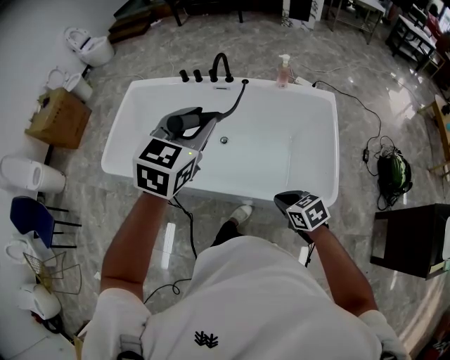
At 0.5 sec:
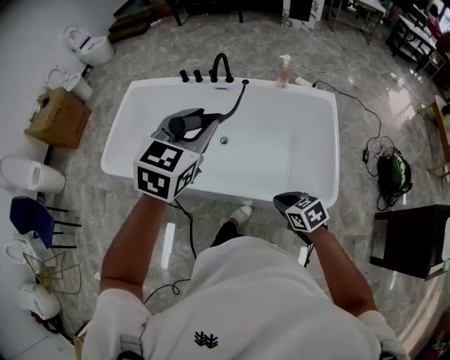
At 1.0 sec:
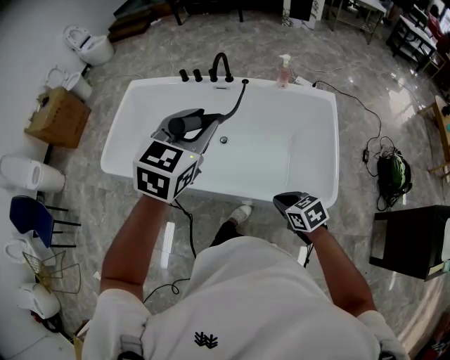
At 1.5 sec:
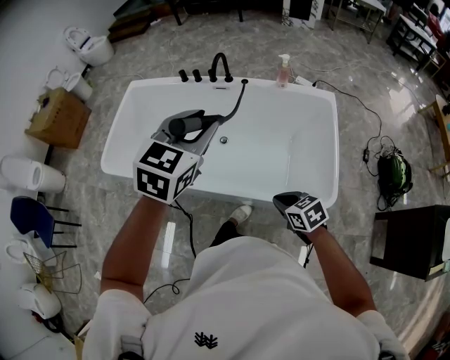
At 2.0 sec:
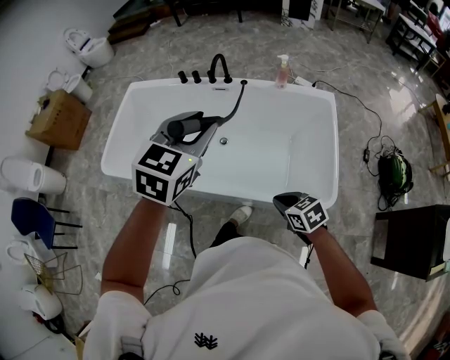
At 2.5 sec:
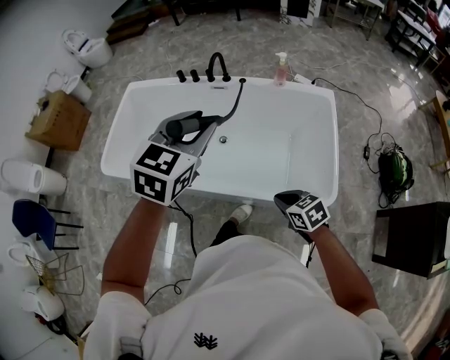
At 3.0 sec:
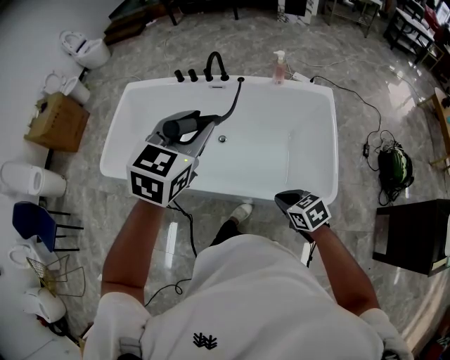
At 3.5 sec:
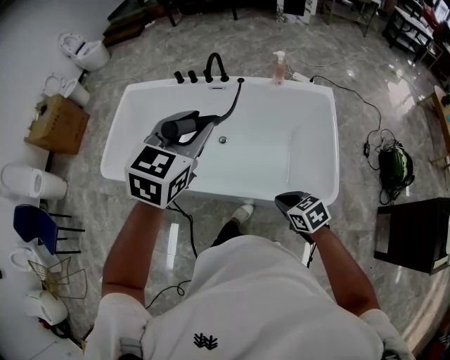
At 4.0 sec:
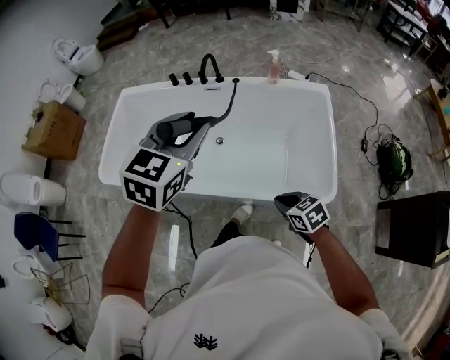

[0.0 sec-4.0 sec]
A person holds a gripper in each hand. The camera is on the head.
0.0 sec to 2.0 sec: Both grippers stay put.
2.0 sec to 4.0 sec: Neither gripper changes place.

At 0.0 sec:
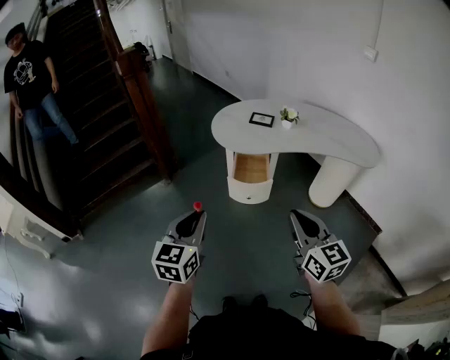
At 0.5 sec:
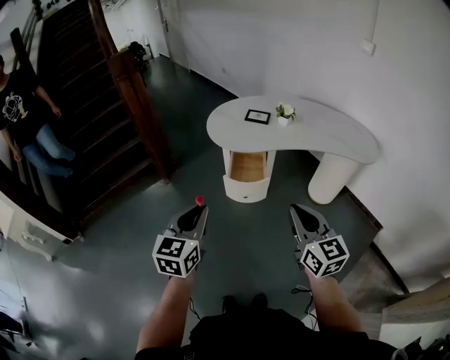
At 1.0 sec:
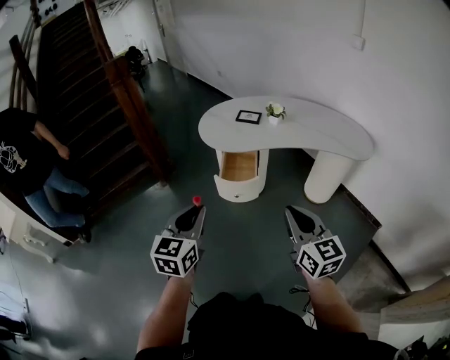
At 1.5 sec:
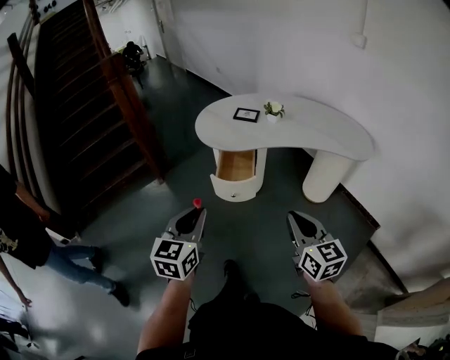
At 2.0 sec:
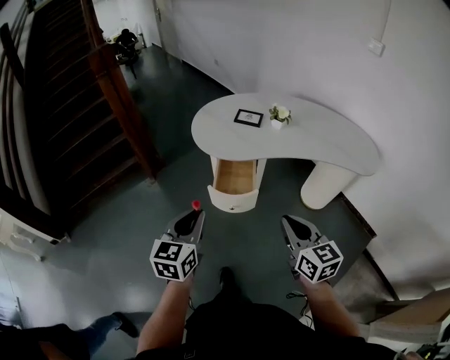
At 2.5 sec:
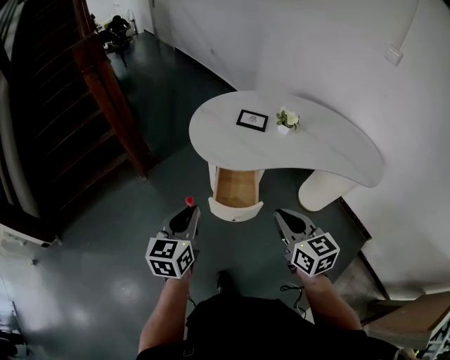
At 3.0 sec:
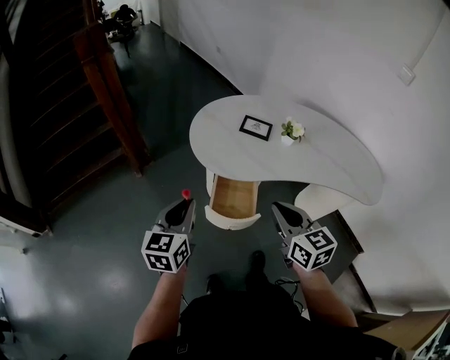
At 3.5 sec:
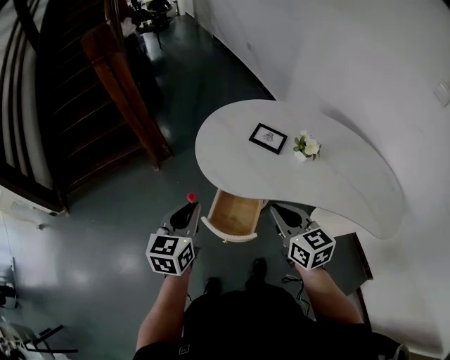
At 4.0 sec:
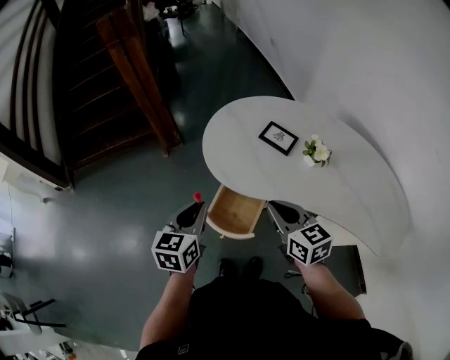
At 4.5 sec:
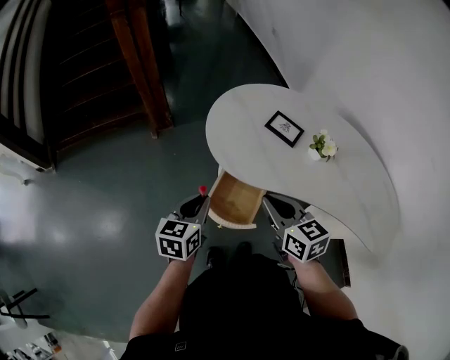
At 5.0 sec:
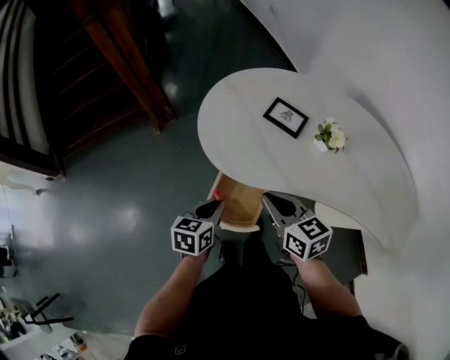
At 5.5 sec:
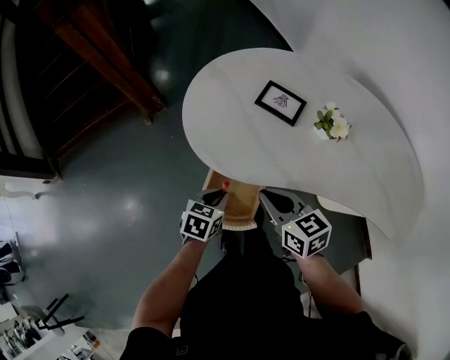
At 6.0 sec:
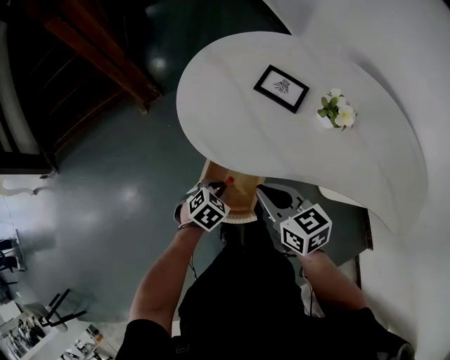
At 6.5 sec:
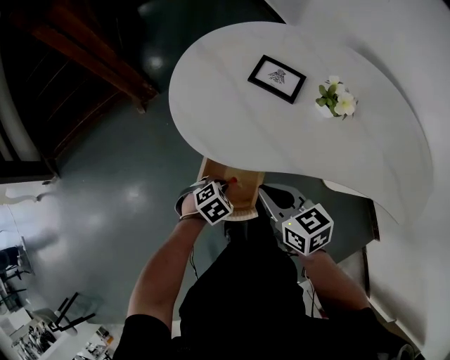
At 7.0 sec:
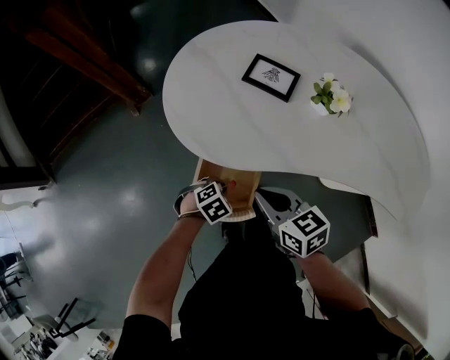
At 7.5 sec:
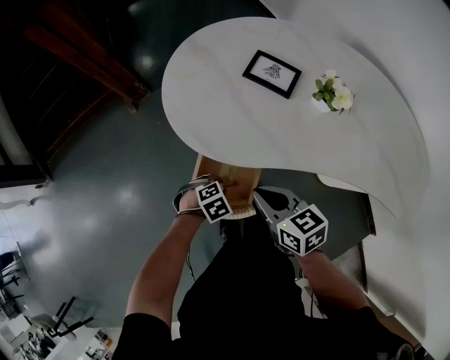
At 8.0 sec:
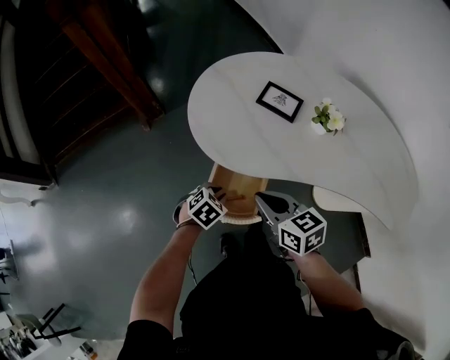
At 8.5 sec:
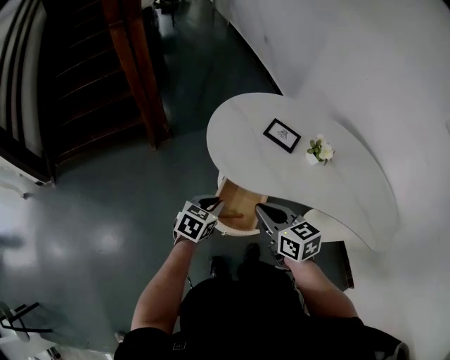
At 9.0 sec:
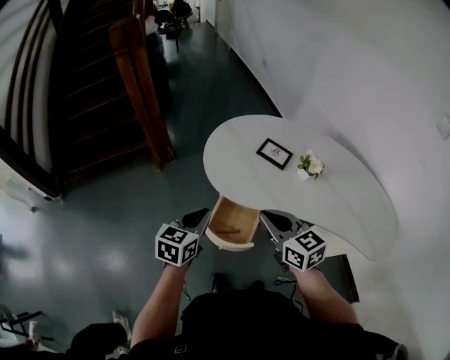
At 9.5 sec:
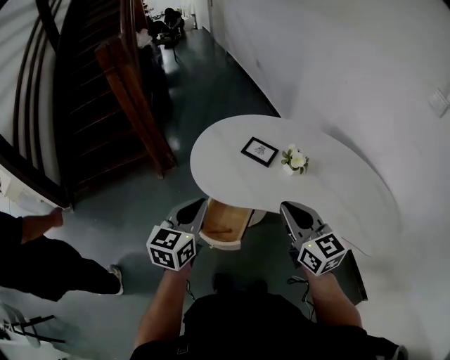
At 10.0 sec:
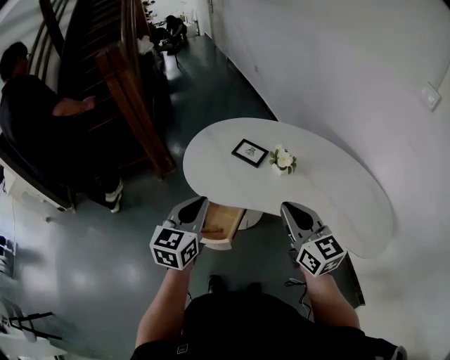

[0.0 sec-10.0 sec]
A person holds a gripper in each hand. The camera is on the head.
0.0 sec to 2.0 sec: The right gripper travels forward, to the right and downward by approximately 15 cm, while the left gripper heads forward and to the right, covering approximately 15 cm.
2.0 sec to 4.0 sec: The two grippers go approximately 30 cm forward. The right gripper swivels roughly 30 degrees. The left gripper changes its angle by about 20 degrees.
4.0 sec to 6.0 sec: The right gripper goes some 15 cm downward; the left gripper moves downward, some 30 cm, and points its fingers some 40 degrees further downward.
6.0 sec to 8.0 sec: The left gripper moves approximately 5 cm downward and comes back.
8.0 sec to 10.0 sec: The left gripper goes roughly 35 cm upward, and points its fingers approximately 50 degrees further upward. Meanwhile the right gripper is displaced upward and to the right by roughly 30 cm, and swivels some 30 degrees.

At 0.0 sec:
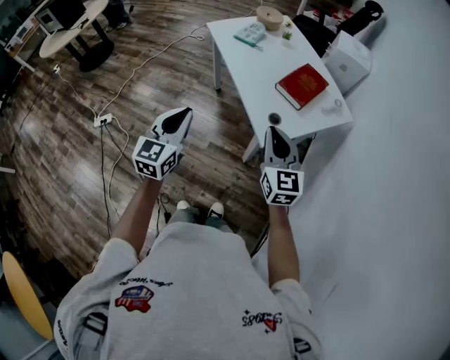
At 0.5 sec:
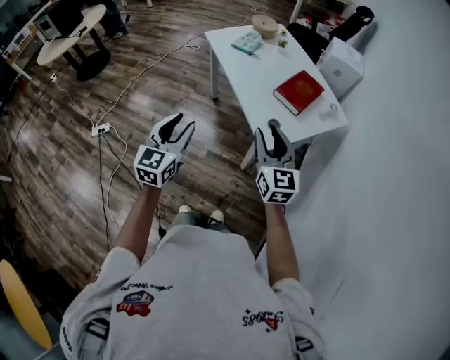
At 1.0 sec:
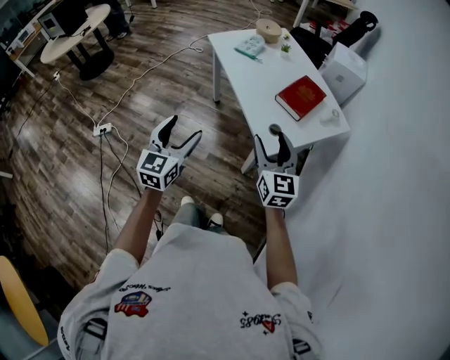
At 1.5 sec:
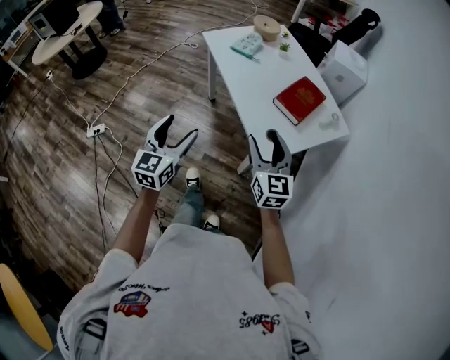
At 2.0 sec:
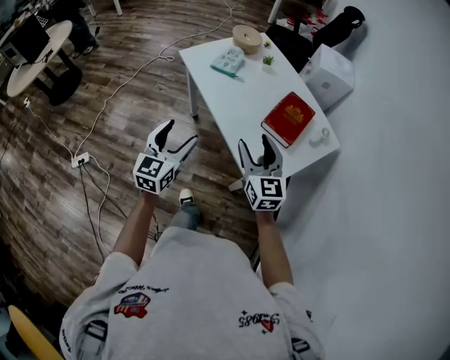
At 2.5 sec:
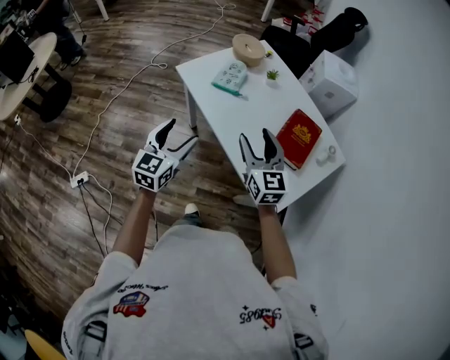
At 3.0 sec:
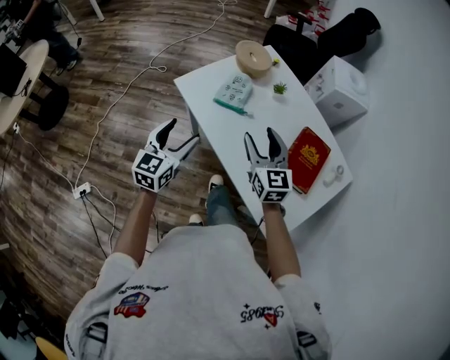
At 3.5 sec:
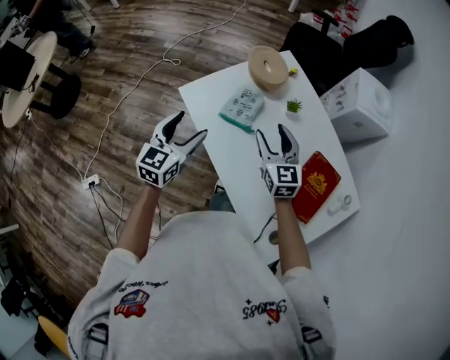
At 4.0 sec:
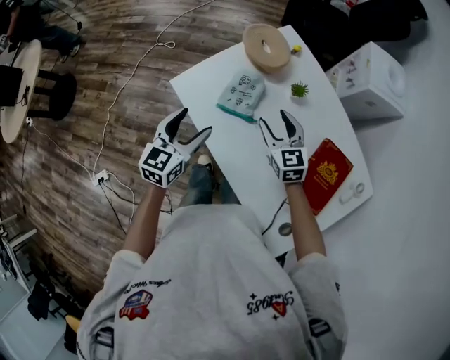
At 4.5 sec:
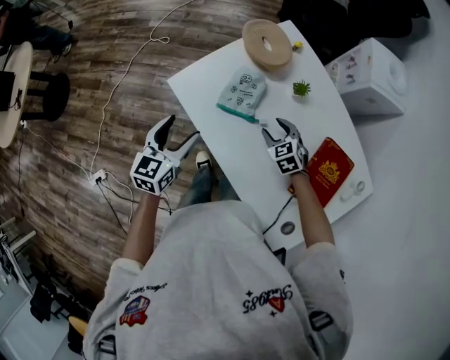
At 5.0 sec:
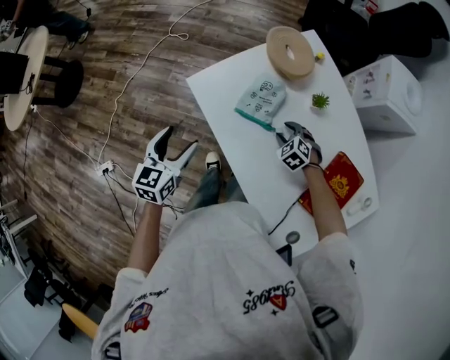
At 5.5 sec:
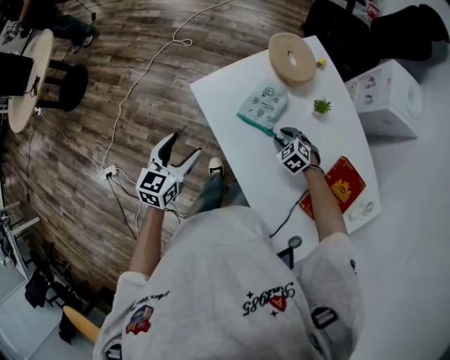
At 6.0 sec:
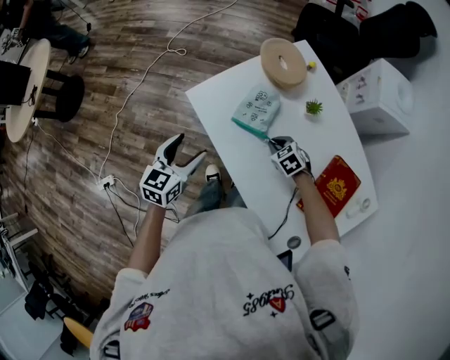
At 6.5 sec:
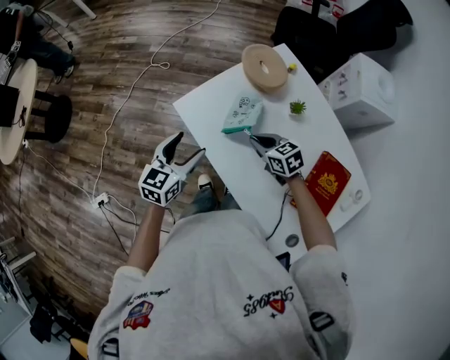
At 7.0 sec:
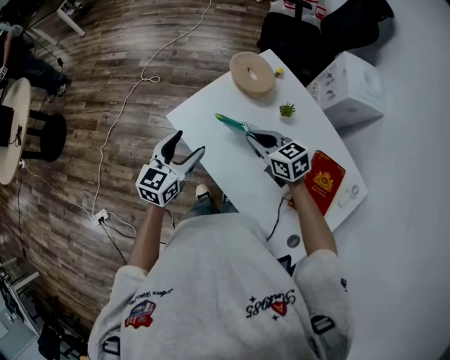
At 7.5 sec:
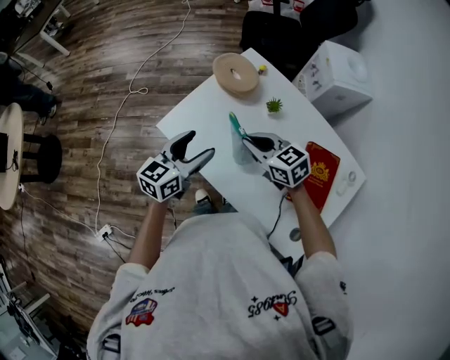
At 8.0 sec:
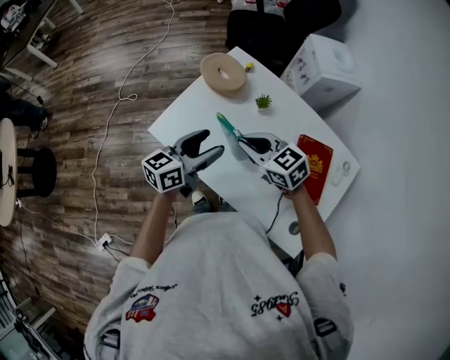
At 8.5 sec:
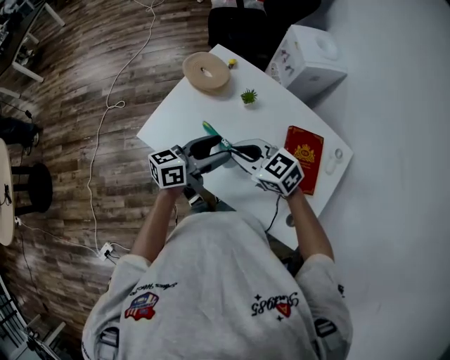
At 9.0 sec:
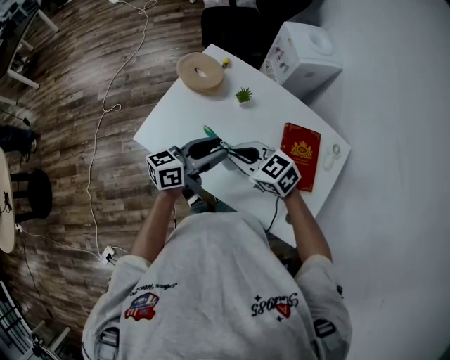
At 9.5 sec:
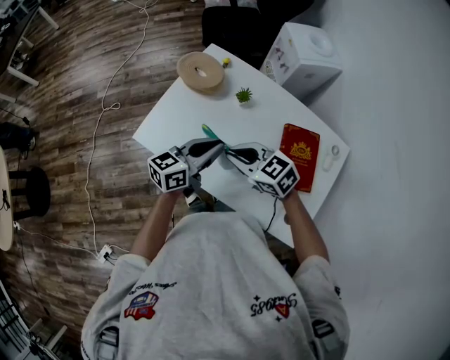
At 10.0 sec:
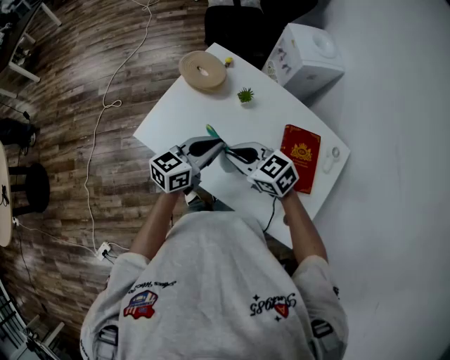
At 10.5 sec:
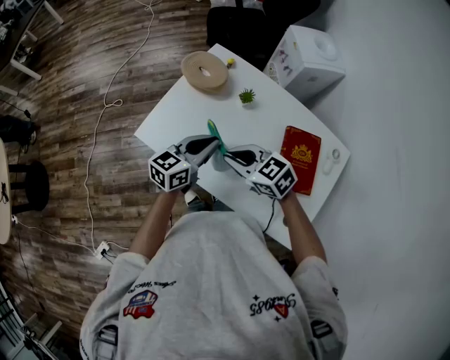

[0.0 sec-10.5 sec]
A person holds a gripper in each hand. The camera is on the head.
0.0 sec to 2.0 sec: The left gripper goes roughly 20 cm forward, and opens. The right gripper goes approximately 20 cm forward and to the left, and opens up.
2.0 sec to 4.0 sec: Both grippers are carried forward, about 50 cm.
4.0 sec to 6.5 sec: The two grippers go roughly 5 cm to the left. The right gripper moves some 20 cm downward and comes back, swivels approximately 30 degrees, and closes its fingers.
6.5 sec to 8.5 sec: The right gripper is displaced upward by about 15 cm. Meanwhile the left gripper changes place by roughly 20 cm, and rotates about 50 degrees.
8.5 sec to 10.5 sec: The left gripper rotates about 20 degrees, and closes.

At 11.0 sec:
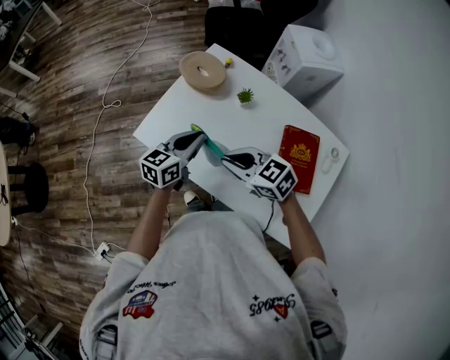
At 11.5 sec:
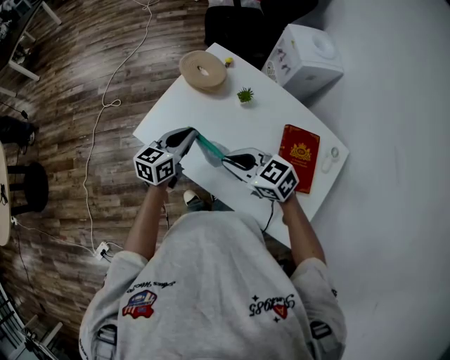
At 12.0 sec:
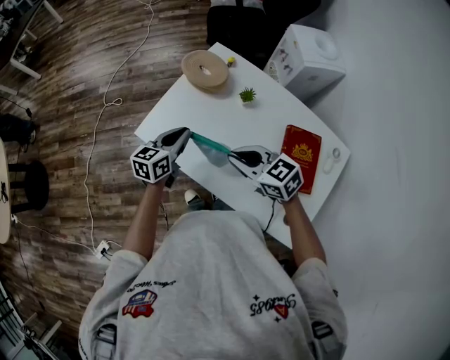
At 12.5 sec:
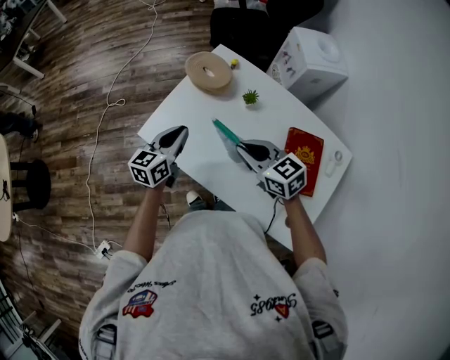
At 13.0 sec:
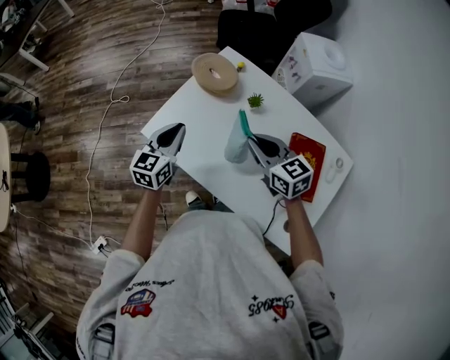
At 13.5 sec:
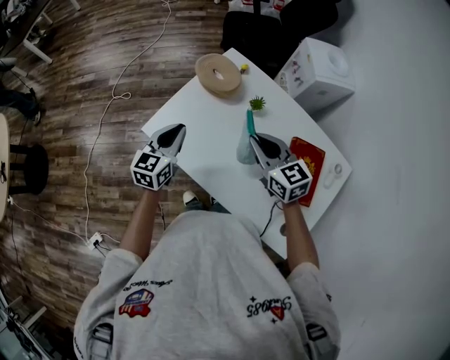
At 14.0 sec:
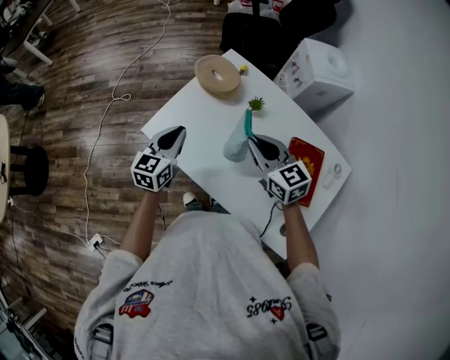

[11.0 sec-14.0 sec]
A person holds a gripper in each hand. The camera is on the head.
11.0 sec to 12.5 sec: The left gripper travels to the left by roughly 5 cm, while the right gripper moves about 5 cm.
12.5 sec to 14.0 sec: The grippers move only a little.
